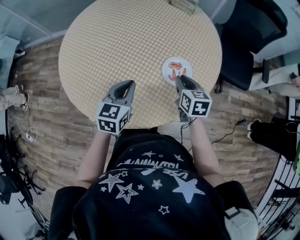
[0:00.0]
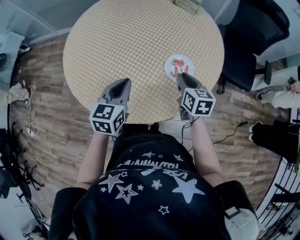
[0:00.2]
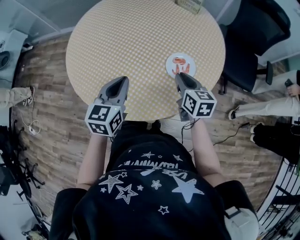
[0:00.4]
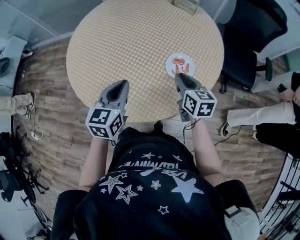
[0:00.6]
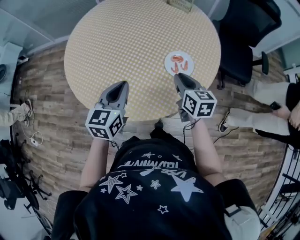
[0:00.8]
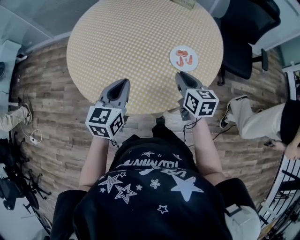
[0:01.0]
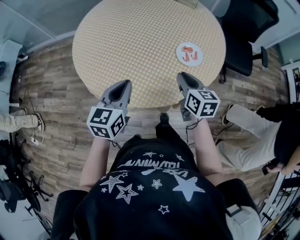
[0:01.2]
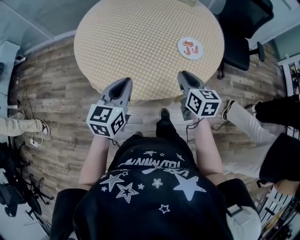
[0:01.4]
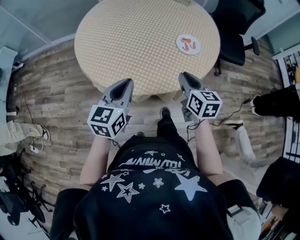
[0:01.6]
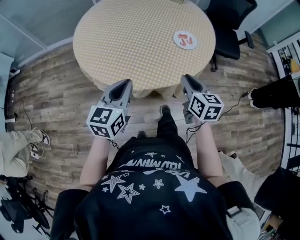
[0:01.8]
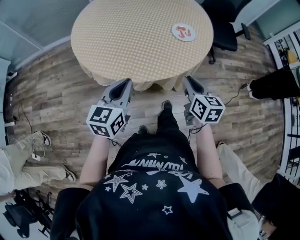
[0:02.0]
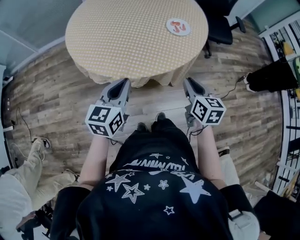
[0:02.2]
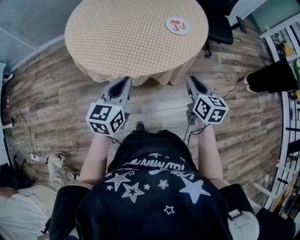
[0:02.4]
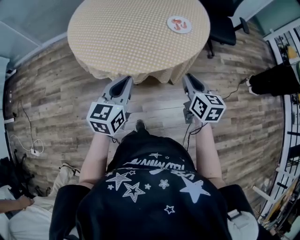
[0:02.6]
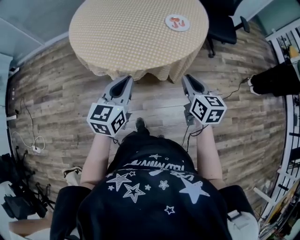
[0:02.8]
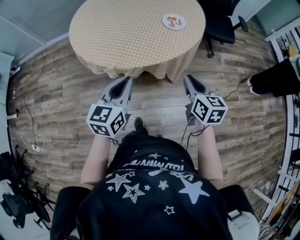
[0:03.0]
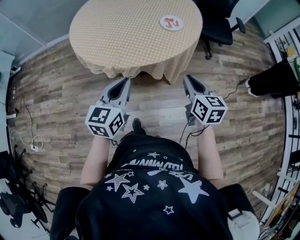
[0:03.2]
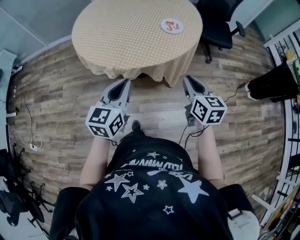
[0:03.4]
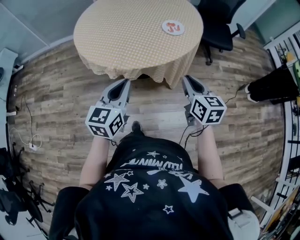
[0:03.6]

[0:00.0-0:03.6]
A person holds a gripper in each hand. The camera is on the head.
0:00.0 to 0:01.8: The left gripper travels backward, to the left and upward by some 25 cm; the right gripper is displaced backward and to the left by about 25 cm.
0:01.8 to 0:03.6: Both grippers move backward and to the right, some 15 cm.

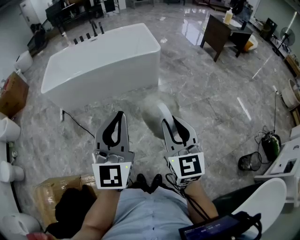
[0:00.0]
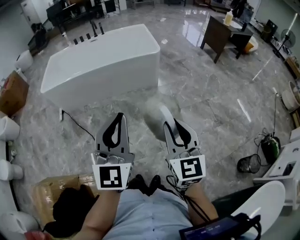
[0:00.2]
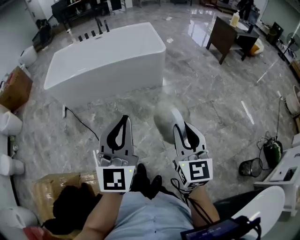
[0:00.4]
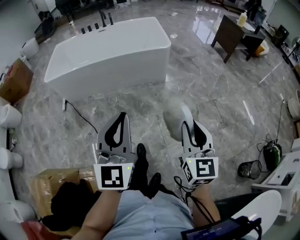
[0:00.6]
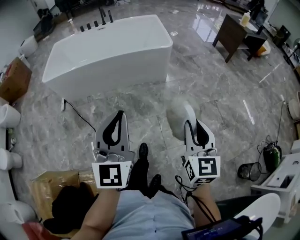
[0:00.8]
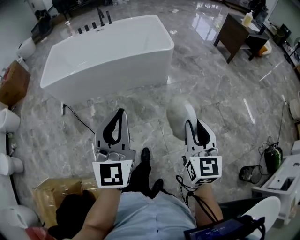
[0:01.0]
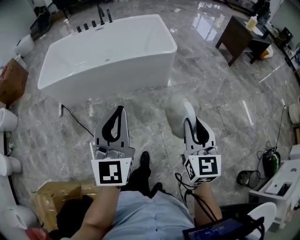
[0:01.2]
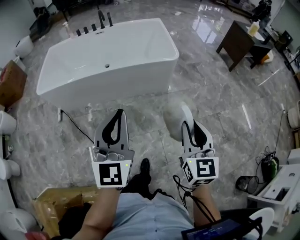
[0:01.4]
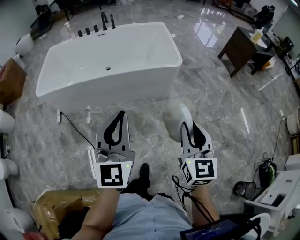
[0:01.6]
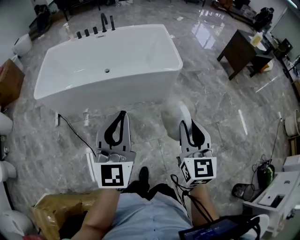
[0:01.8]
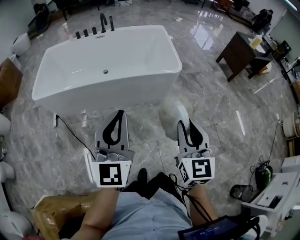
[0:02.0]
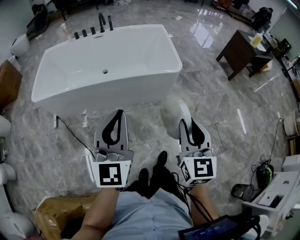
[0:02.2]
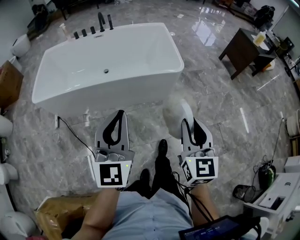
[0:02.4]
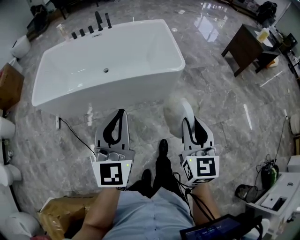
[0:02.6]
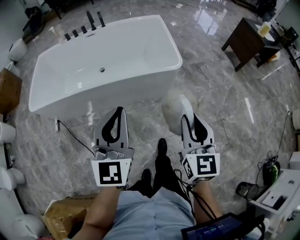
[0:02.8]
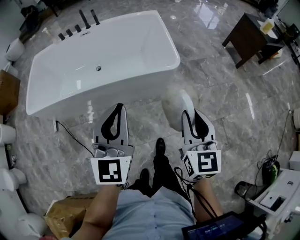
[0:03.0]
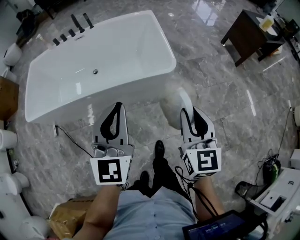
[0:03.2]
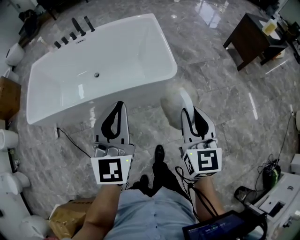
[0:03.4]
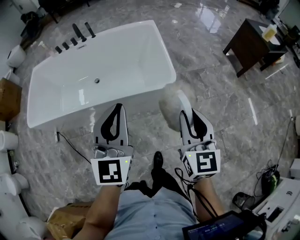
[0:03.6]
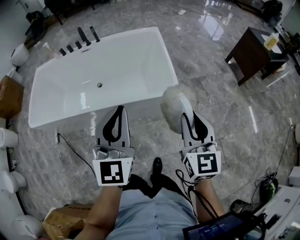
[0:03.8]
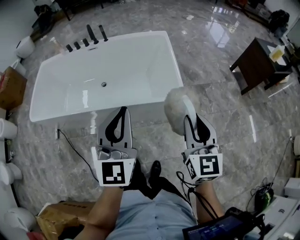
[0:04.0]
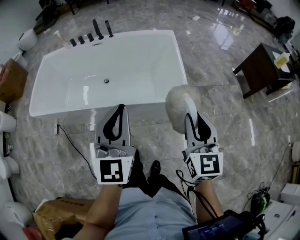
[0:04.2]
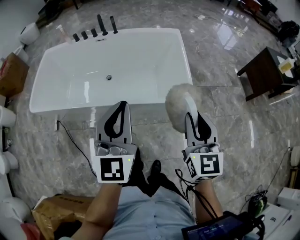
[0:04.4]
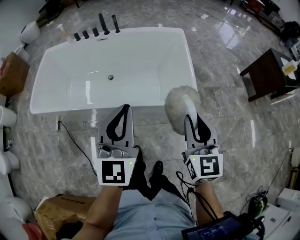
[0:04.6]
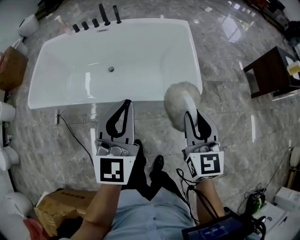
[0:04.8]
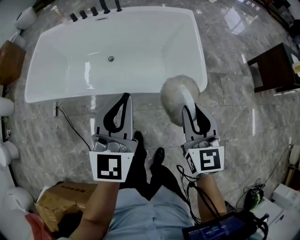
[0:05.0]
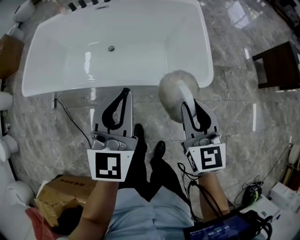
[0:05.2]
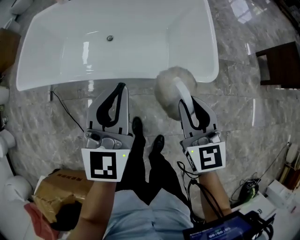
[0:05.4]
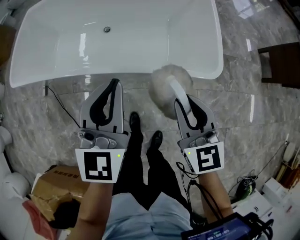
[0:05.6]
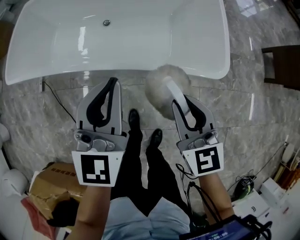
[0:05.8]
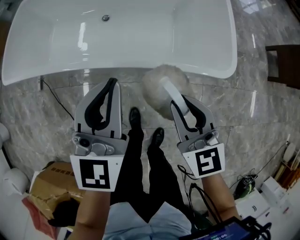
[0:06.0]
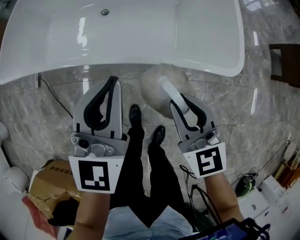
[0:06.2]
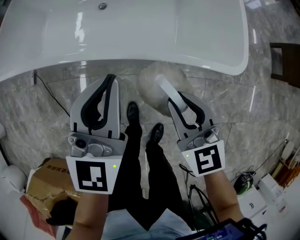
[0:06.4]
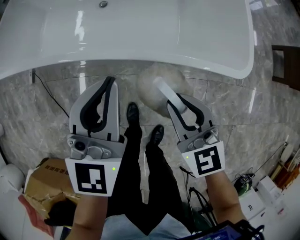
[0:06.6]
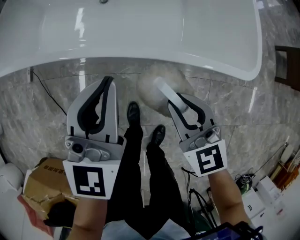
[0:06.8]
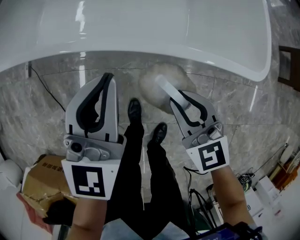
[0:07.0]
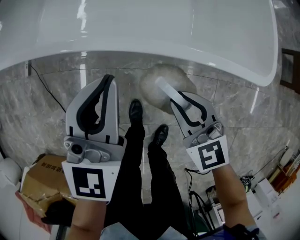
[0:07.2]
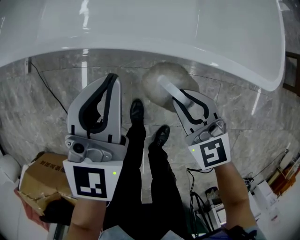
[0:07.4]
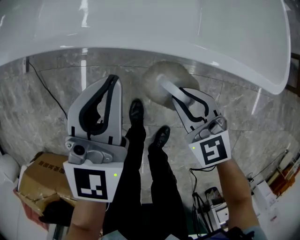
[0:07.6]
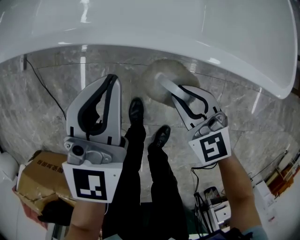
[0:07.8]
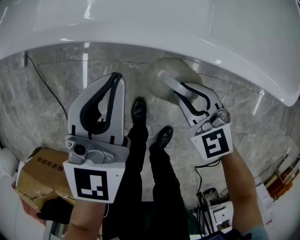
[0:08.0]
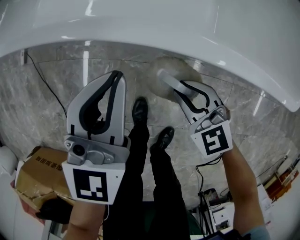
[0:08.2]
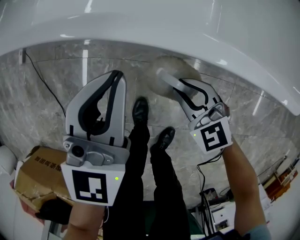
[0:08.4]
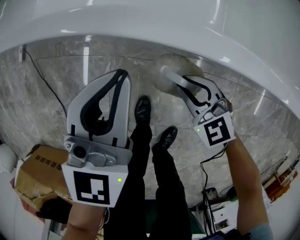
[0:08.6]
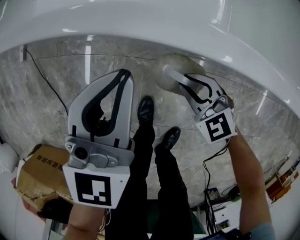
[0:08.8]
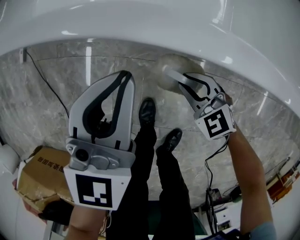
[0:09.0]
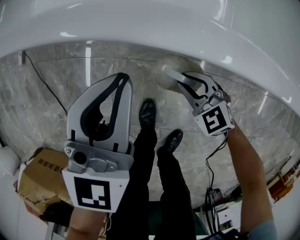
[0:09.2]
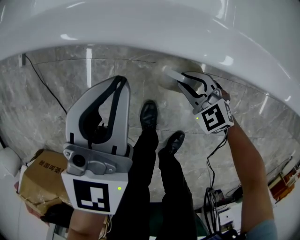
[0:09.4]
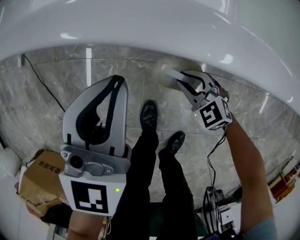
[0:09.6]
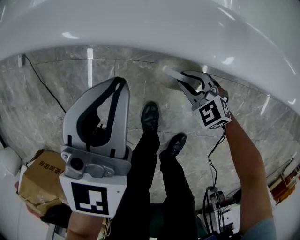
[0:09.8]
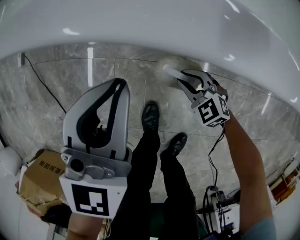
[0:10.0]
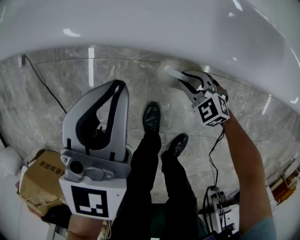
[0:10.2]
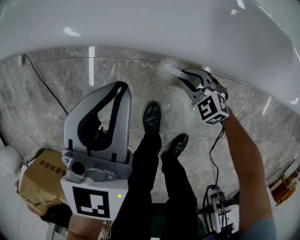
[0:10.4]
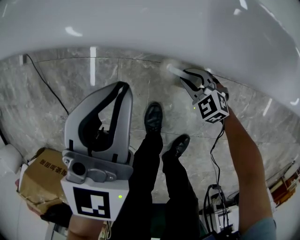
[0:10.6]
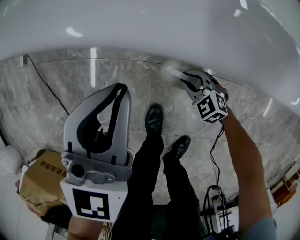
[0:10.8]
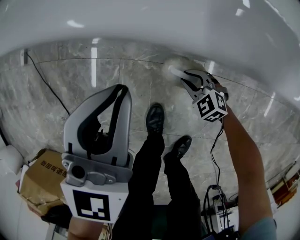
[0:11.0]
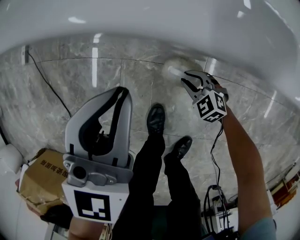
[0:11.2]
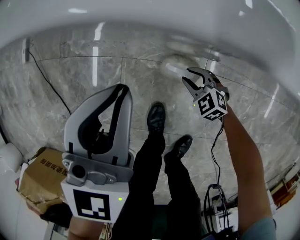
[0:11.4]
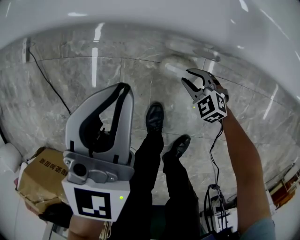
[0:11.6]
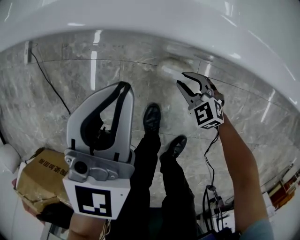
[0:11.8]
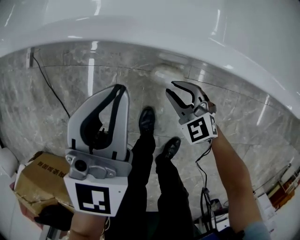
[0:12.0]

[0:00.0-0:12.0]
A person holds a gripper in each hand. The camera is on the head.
0:00.0 to 0:01.6: Both grippers travel together forward, roughly 35 cm.
0:01.6 to 0:03.0: Both grippers move forward, some 25 cm.
0:03.0 to 0:04.4: The two grippers go roughly 20 cm forward.
0:04.4 to 0:06.0: The right gripper moves downward and to the left, roughly 30 cm, and swivels roughly 30 degrees; the left gripper heads downward and forward, covering roughly 30 cm.
0:06.0 to 0:07.6: The grippers both shift downward by approximately 25 cm. The right gripper rotates roughly 20 degrees.
0:07.6 to 0:09.0: The right gripper shifts about 20 cm downward; the left gripper travels downward by some 10 cm.
0:09.0 to 0:10.4: The right gripper heads downward, covering some 15 cm.
0:10.4 to 0:12.0: The left gripper shifts approximately 10 cm upward. The right gripper is displaced upward by some 15 cm.

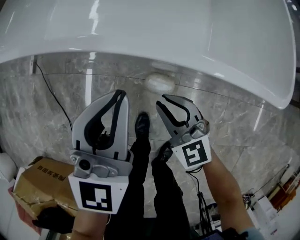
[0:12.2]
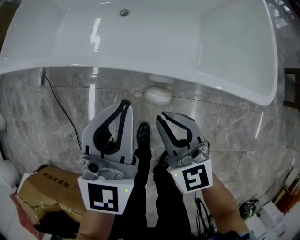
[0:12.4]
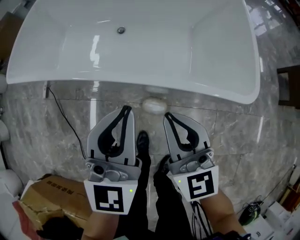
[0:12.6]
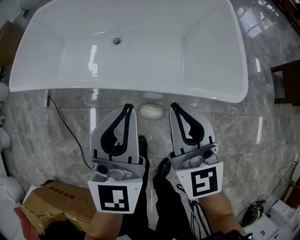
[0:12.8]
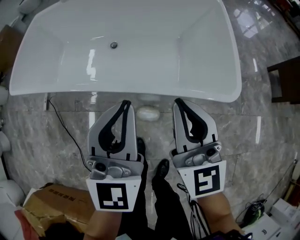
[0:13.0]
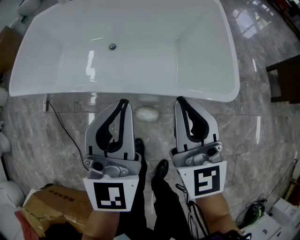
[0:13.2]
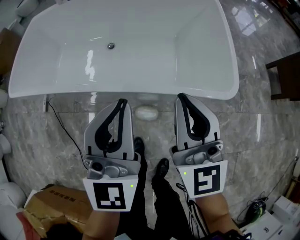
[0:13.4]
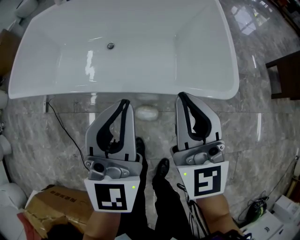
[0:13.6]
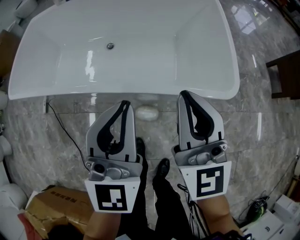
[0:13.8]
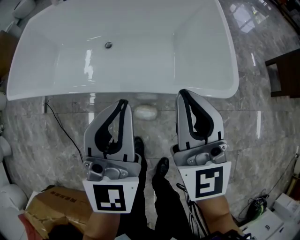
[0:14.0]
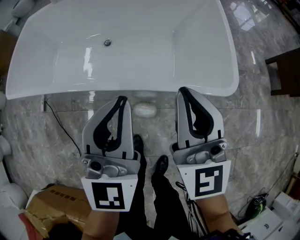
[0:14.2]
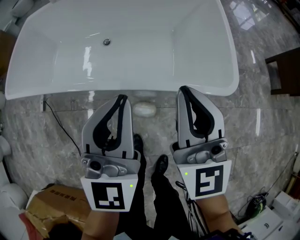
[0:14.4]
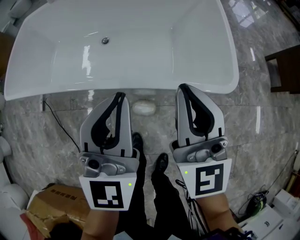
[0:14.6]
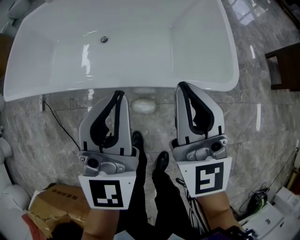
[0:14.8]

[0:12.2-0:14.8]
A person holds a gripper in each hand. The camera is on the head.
0:12.2 to 0:13.4: The right gripper travels upward by some 35 cm, and turns by approximately 40 degrees. The left gripper shifts roughly 20 cm upward.
0:13.4 to 0:14.8: The grippers move only a little.

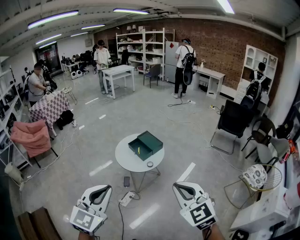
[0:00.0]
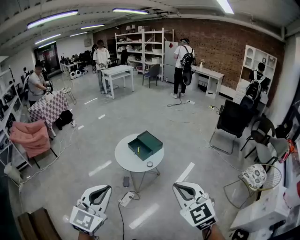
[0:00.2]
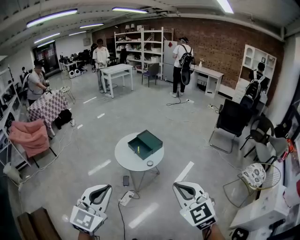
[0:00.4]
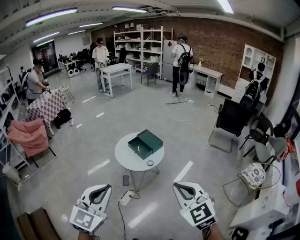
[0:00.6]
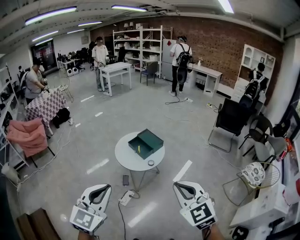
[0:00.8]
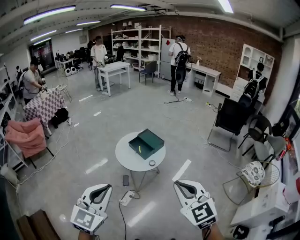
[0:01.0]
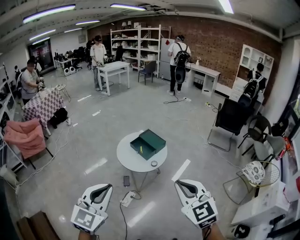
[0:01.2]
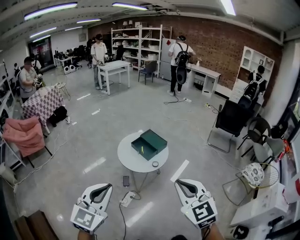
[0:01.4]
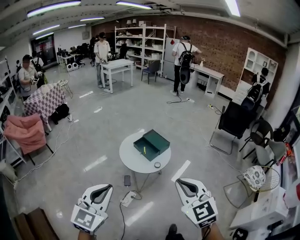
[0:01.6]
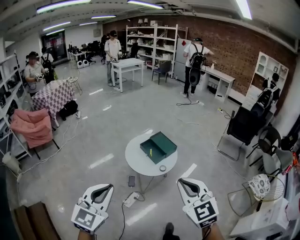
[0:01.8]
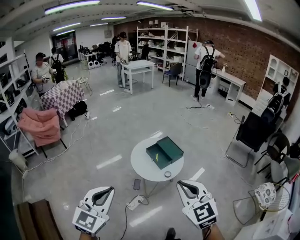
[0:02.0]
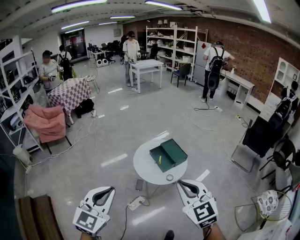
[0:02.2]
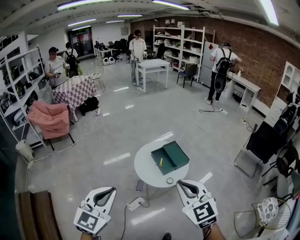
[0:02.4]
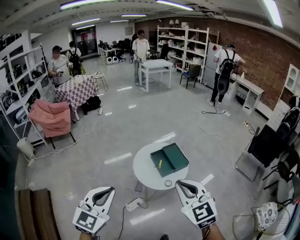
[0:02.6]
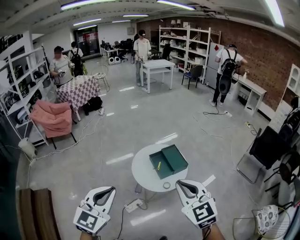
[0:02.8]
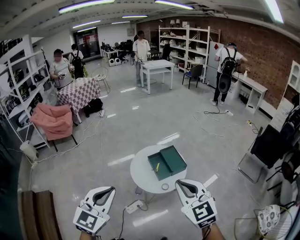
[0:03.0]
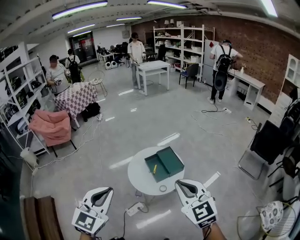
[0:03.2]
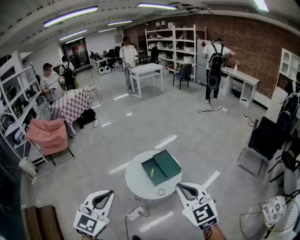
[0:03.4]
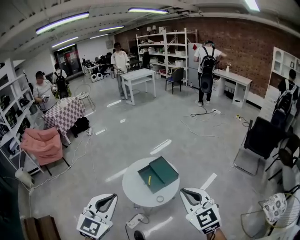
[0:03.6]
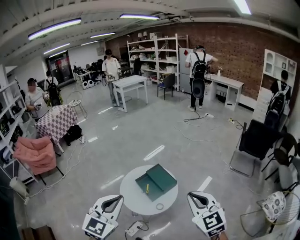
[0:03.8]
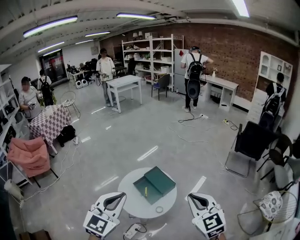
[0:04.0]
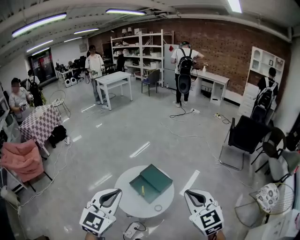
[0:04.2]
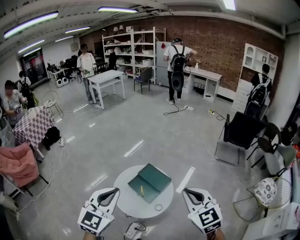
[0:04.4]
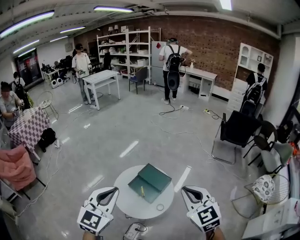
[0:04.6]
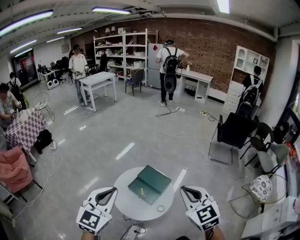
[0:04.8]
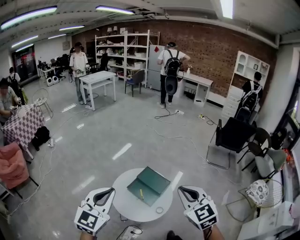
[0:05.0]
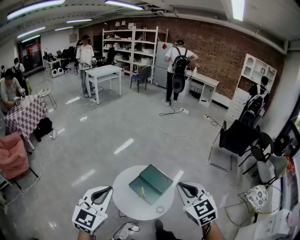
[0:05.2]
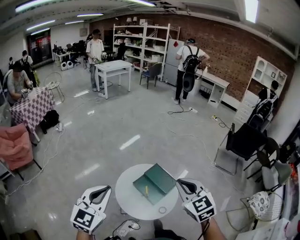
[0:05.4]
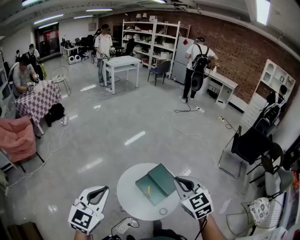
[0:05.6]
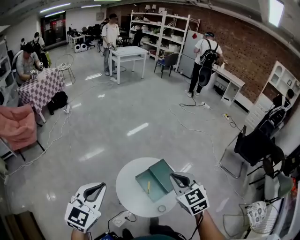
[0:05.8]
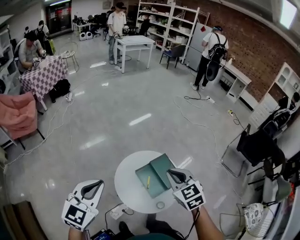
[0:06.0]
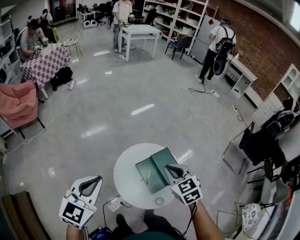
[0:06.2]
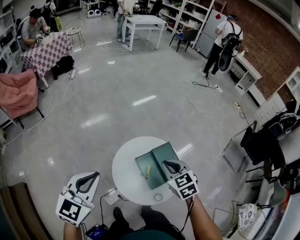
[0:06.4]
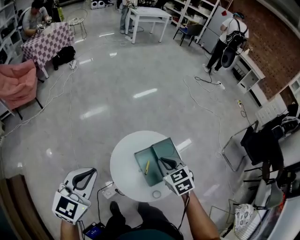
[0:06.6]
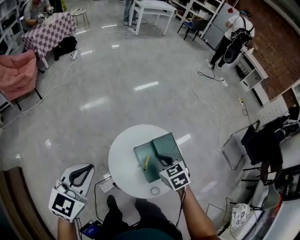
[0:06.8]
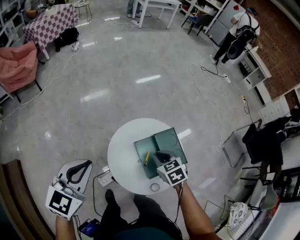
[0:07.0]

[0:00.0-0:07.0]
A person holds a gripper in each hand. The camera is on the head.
0:00.0 to 0:01.4: The left gripper heads to the left and forward, covering some 15 cm. Meanwhile the right gripper goes roughly 15 cm to the left.
0:01.4 to 0:02.8: The left gripper moves forward and to the right, some 25 cm; the right gripper goes approximately 30 cm forward, and changes its angle by about 20 degrees.
0:02.8 to 0:04.2: The left gripper heads forward, covering about 25 cm, and turns by roughly 20 degrees. The right gripper goes about 20 cm forward and to the right, and swivels roughly 20 degrees.
0:04.2 to 0:05.6: The two grippers go roughly 25 cm to the left and forward.
0:05.6 to 0:07.0: The left gripper travels downward and forward by some 25 cm, and rotates roughly 20 degrees. The right gripper moves downward and forward, about 40 cm, and points its fingers about 30 degrees further downward.
